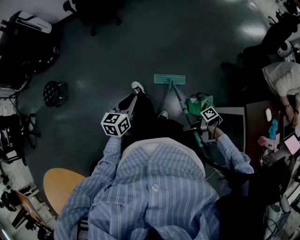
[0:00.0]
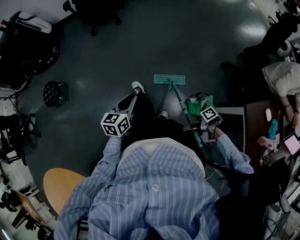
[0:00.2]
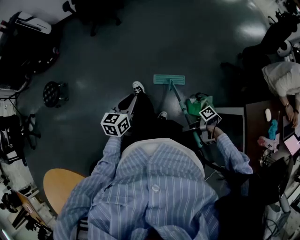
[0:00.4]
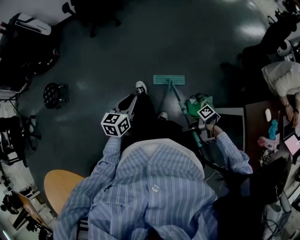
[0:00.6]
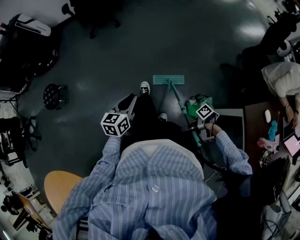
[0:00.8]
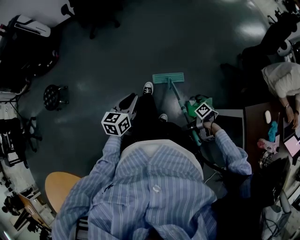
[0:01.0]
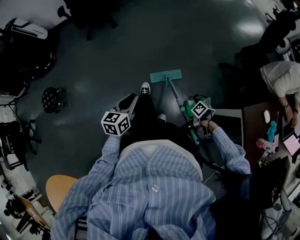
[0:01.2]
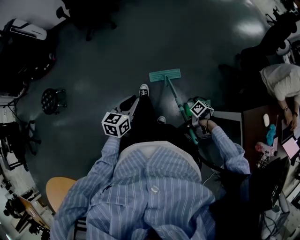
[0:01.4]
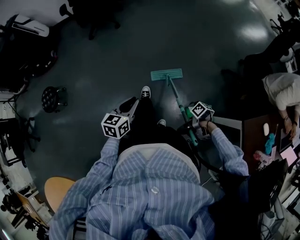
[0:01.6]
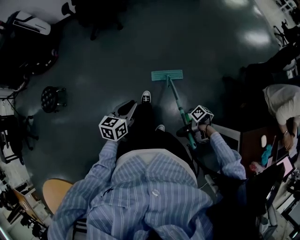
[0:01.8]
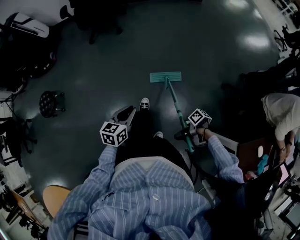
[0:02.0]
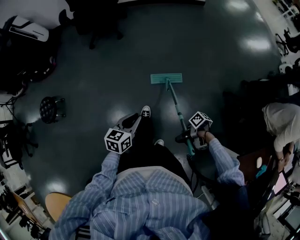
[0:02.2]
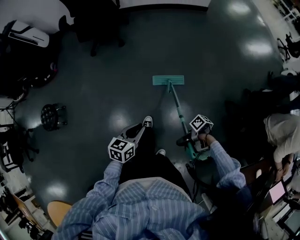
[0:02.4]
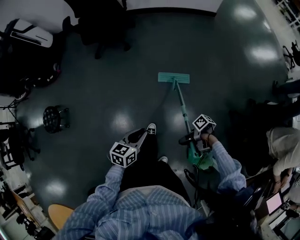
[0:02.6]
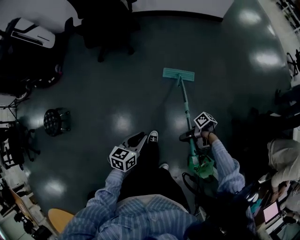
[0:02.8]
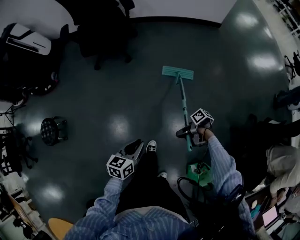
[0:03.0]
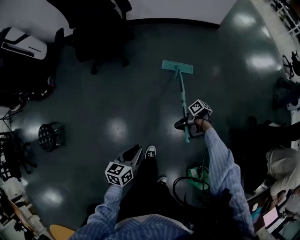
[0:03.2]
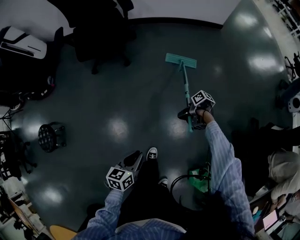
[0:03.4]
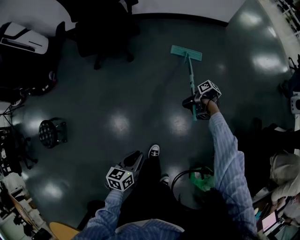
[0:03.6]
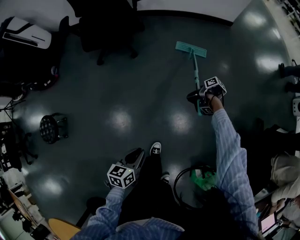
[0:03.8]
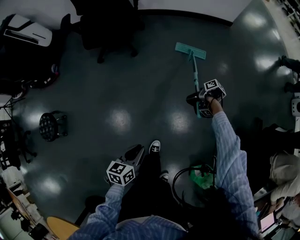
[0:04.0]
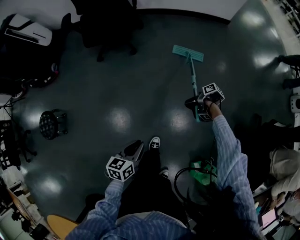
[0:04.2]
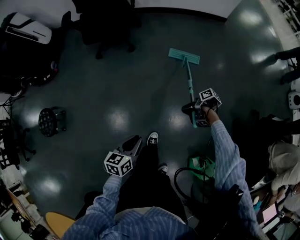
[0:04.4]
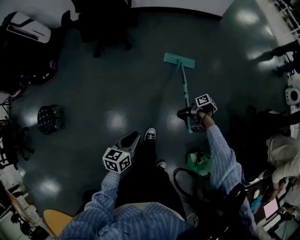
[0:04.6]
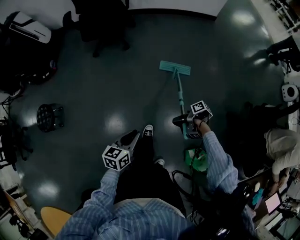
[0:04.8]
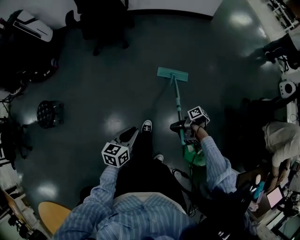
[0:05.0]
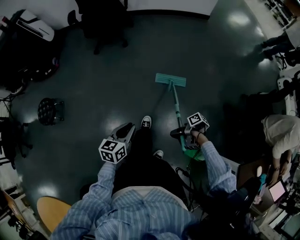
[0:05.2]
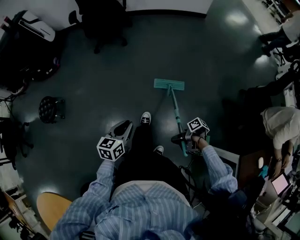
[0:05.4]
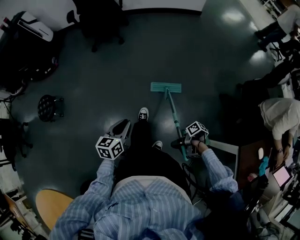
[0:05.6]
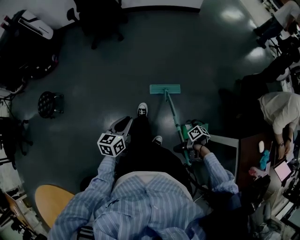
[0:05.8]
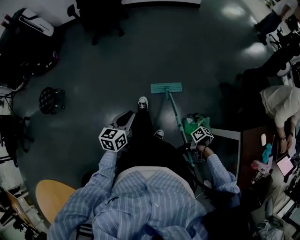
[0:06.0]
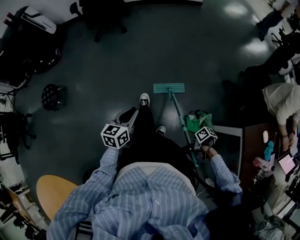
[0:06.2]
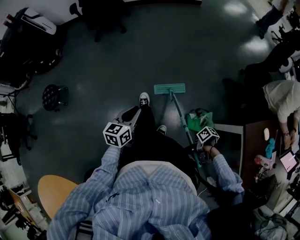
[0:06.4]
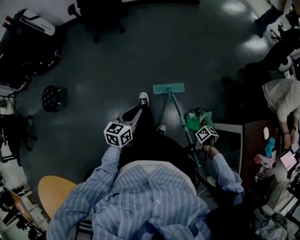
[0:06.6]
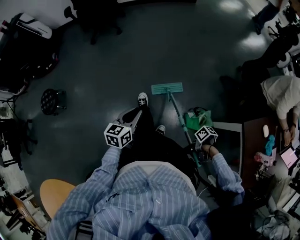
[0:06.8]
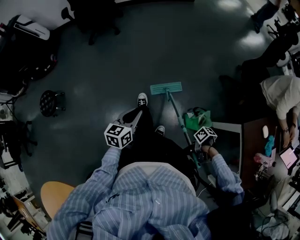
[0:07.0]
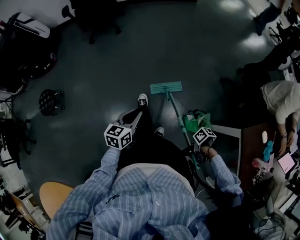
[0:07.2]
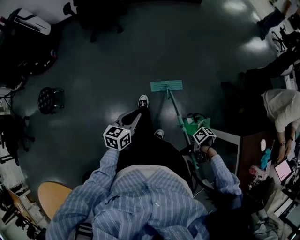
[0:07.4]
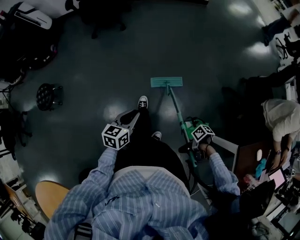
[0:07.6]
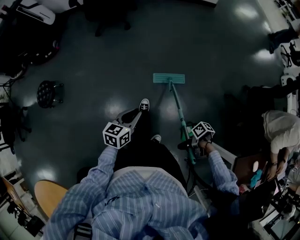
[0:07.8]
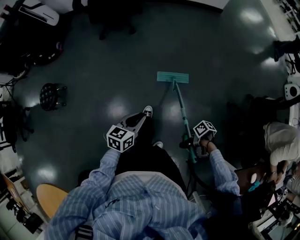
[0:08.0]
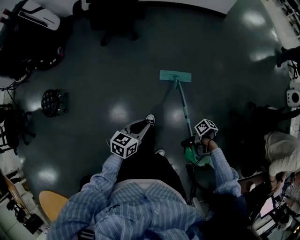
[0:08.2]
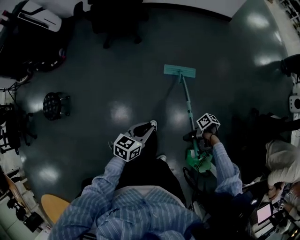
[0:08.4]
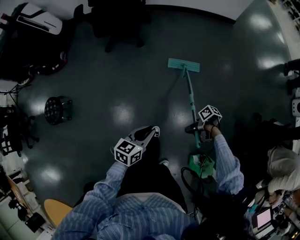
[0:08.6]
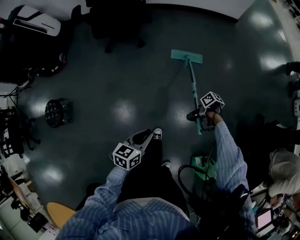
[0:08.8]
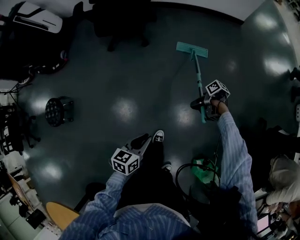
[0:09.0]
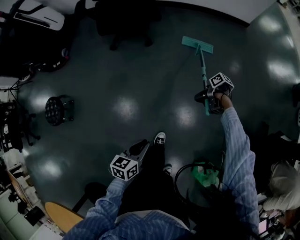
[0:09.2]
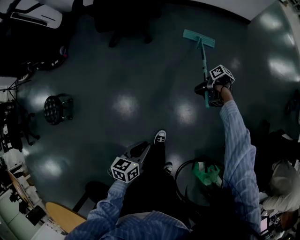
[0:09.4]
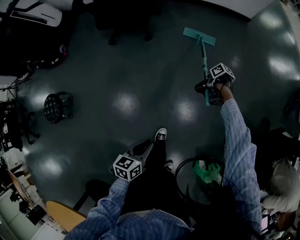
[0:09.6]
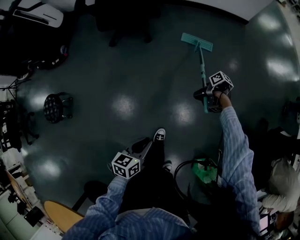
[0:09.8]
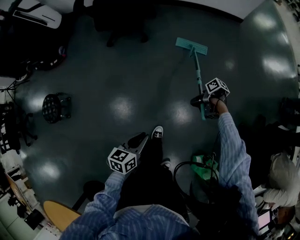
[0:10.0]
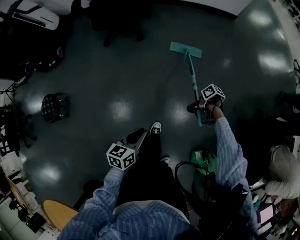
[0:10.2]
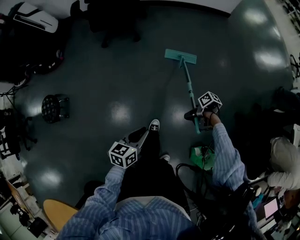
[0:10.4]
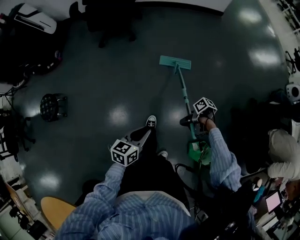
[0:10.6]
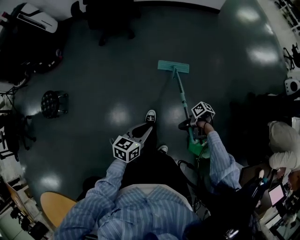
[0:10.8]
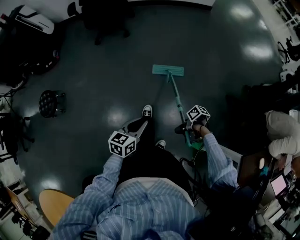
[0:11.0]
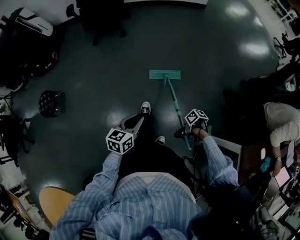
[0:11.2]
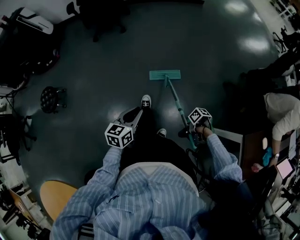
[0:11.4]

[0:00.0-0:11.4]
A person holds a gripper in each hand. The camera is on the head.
0.0 to 1.4 s: The left gripper ends up approximately 5 cm from where it was.
1.4 to 2.8 s: The left gripper moves roughly 35 cm.
2.8 to 4.2 s: The left gripper ends up about 10 cm from where it was.
4.2 to 5.6 s: The left gripper ends up approximately 30 cm from where it was.
5.6 to 7.2 s: The left gripper shifts by some 10 cm.
7.2 to 8.6 s: The left gripper ends up approximately 30 cm from where it was.
8.6 to 10.0 s: The left gripper shifts by roughly 10 cm.
10.0 to 11.4 s: The left gripper changes place by roughly 30 cm.

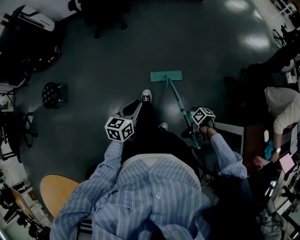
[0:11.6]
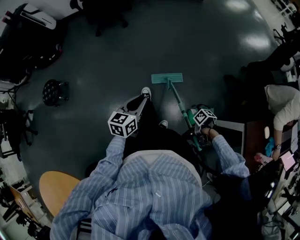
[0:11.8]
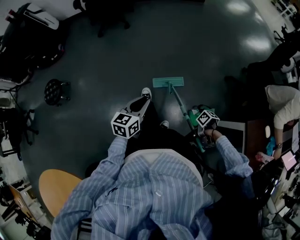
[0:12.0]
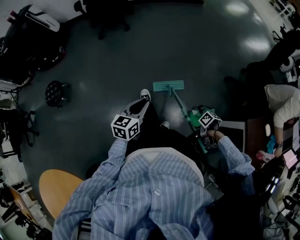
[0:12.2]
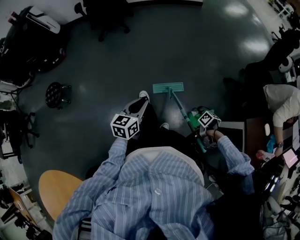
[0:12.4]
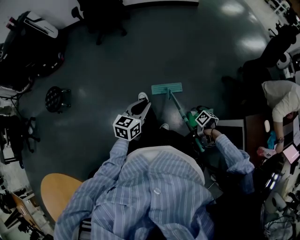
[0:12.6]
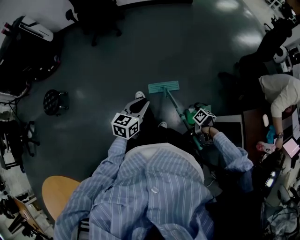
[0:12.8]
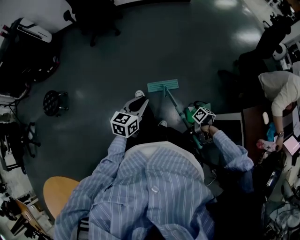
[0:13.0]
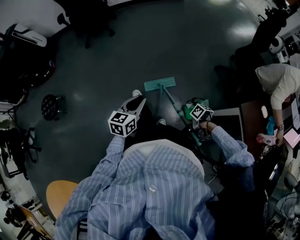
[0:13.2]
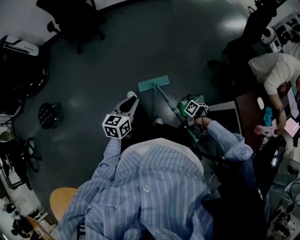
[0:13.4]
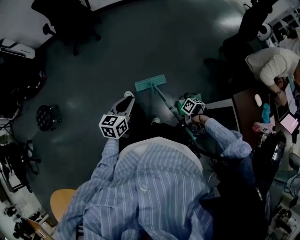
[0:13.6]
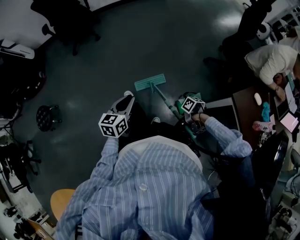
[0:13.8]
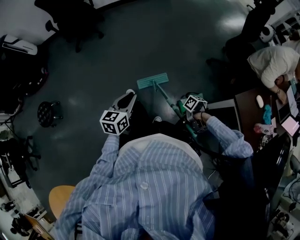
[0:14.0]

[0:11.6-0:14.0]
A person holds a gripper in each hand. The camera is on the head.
11.6 to 12.8 s: The left gripper ends up some 5 cm from where it was.

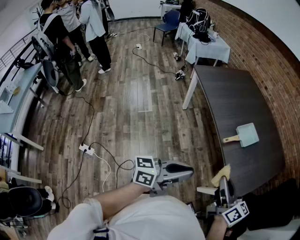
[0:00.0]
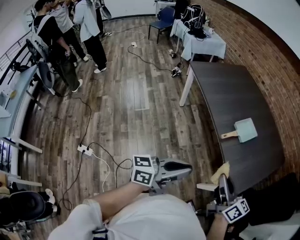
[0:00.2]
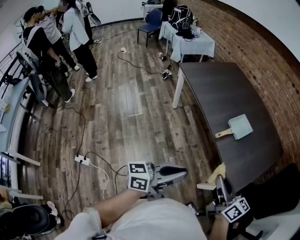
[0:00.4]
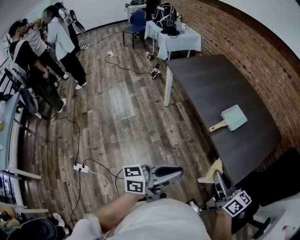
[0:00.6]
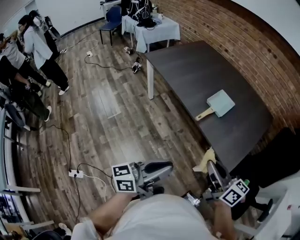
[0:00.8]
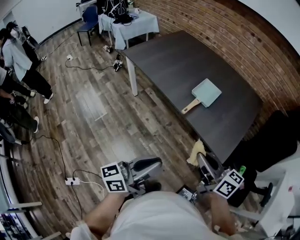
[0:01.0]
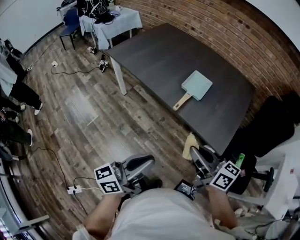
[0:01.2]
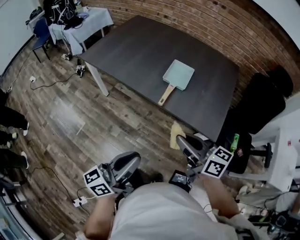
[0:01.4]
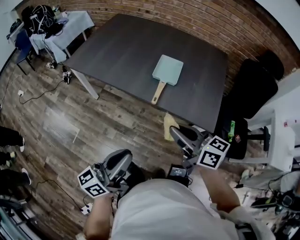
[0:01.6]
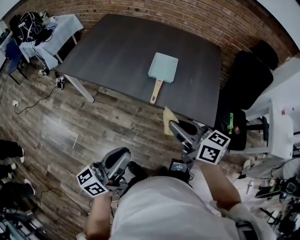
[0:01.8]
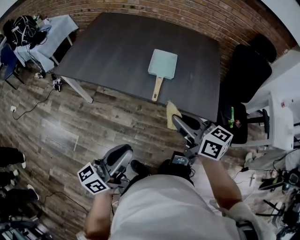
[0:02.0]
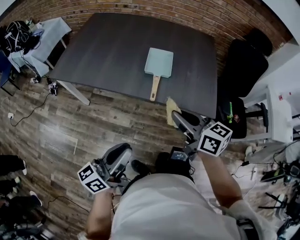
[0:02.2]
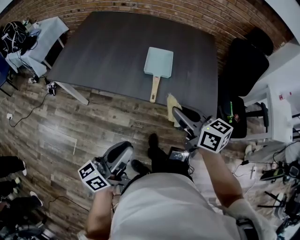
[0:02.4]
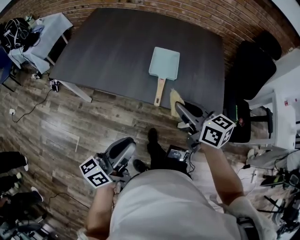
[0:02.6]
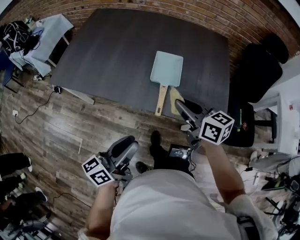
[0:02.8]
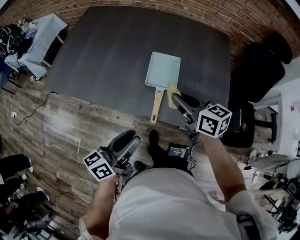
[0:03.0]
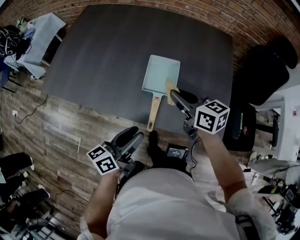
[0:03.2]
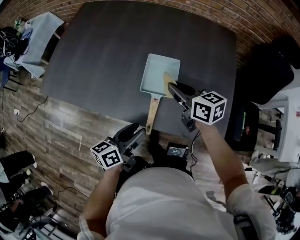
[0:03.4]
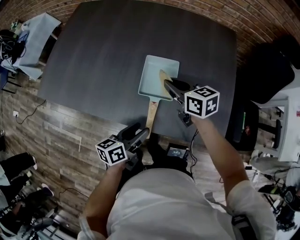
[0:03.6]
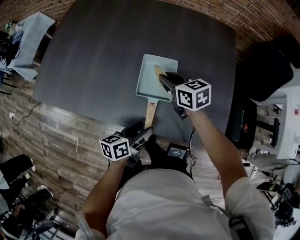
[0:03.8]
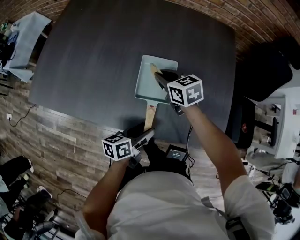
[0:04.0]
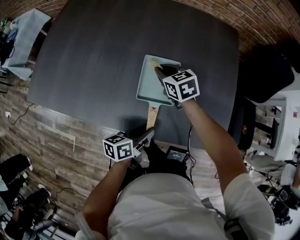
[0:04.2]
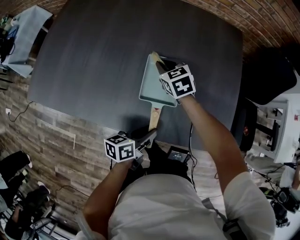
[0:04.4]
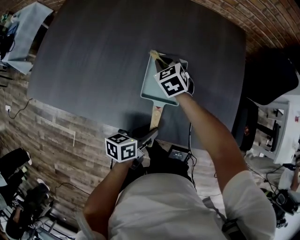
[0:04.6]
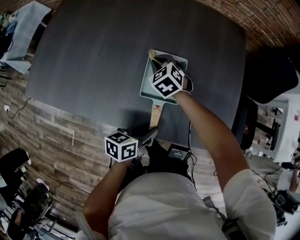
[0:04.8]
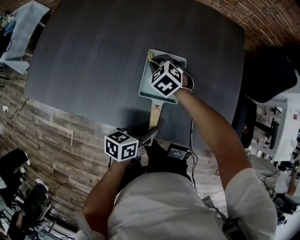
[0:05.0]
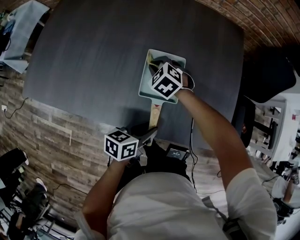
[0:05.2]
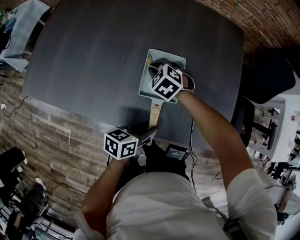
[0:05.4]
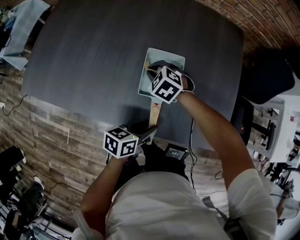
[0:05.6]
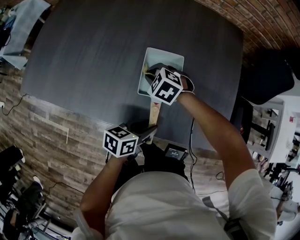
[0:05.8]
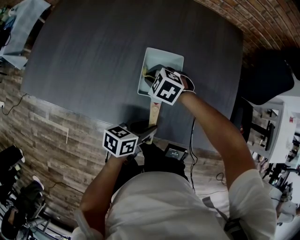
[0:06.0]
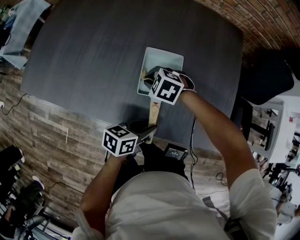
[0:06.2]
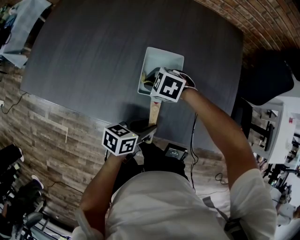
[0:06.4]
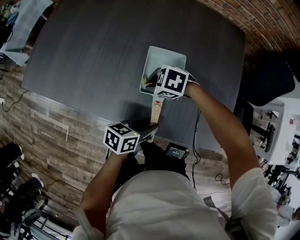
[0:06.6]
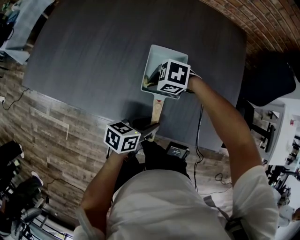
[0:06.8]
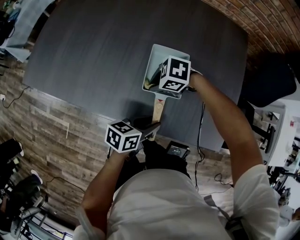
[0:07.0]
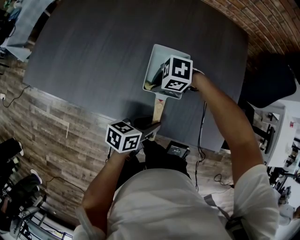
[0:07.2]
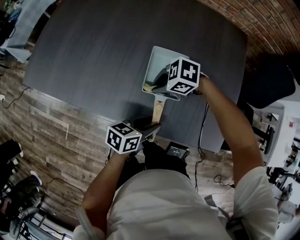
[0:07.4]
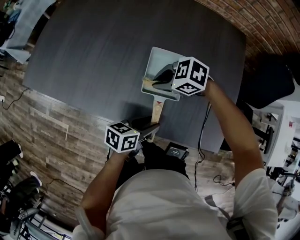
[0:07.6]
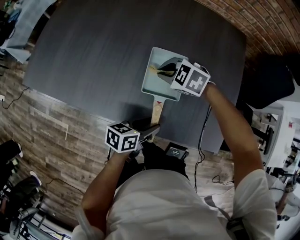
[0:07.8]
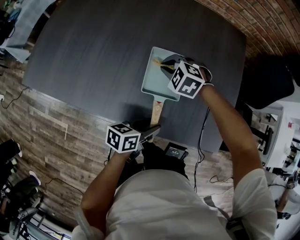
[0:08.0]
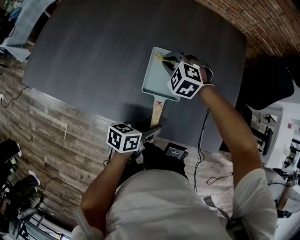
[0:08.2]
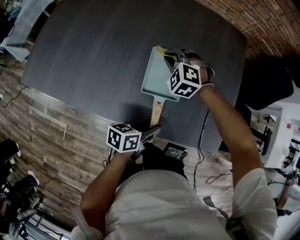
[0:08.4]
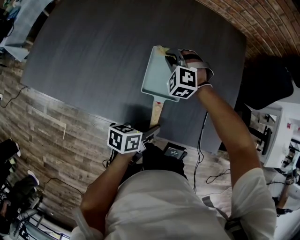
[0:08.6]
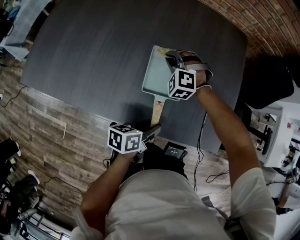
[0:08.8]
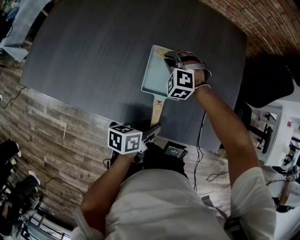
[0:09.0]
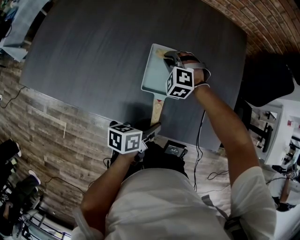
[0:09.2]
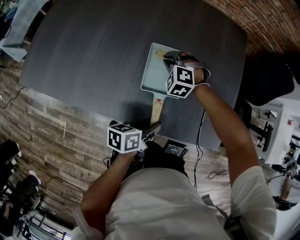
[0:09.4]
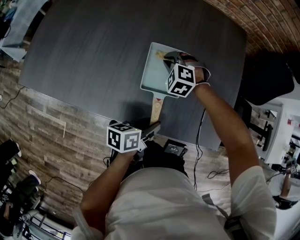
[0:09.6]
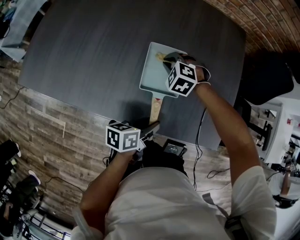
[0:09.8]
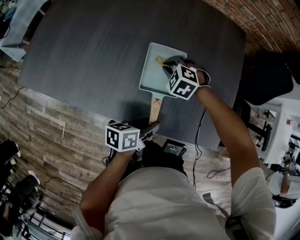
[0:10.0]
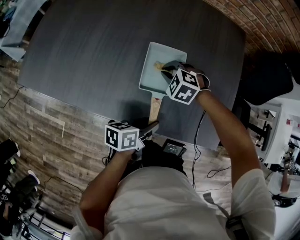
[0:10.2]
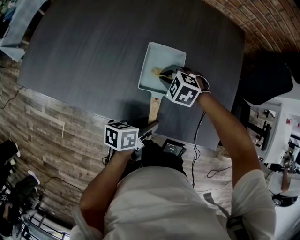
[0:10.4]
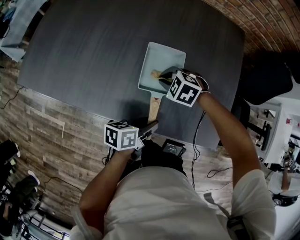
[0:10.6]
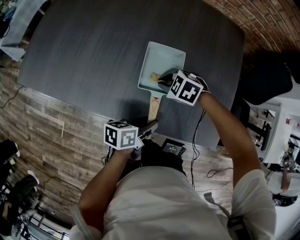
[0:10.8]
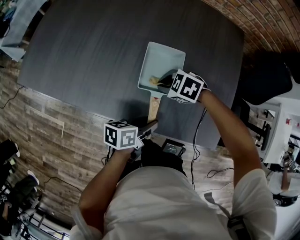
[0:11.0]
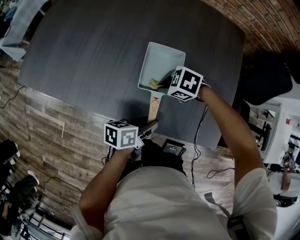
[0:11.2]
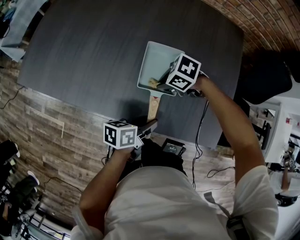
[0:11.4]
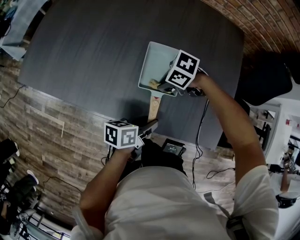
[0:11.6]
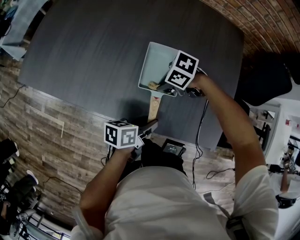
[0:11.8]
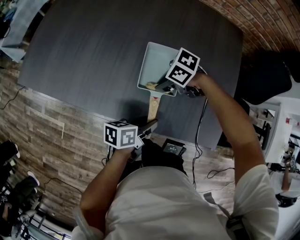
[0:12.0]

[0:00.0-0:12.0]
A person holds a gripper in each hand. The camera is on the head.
0.0 to 1.6 s: Both grippers move forward and to the left, approximately 15 cm. The right gripper swivels some 20 degrees.
1.6 to 3.0 s: Both grippers travel together forward, about 25 cm. The left gripper opens its fingers.
3.0 to 4.4 s: The right gripper is displaced forward and downward by about 30 cm, and turns by roughly 40 degrees. The left gripper shifts about 20 cm downward, forward and to the right, changes its angle by roughly 30 degrees, and opens, then closes again.
4.4 to 6.0 s: The right gripper shifts approximately 10 cm backward, and turns by roughly 40 degrees.
6.0 to 7.6 s: The right gripper is displaced upward by roughly 5 cm, and rotates approximately 30 degrees.
7.6 to 9.0 s: The right gripper moves roughly 15 cm, and swivels approximately 60 degrees.
9.0 to 10.4 s: The right gripper moves backward, approximately 10 cm, and changes its angle by approximately 30 degrees.
10.4 to 12.0 s: The right gripper moves roughly 5 cm, and changes its angle by some 50 degrees.
